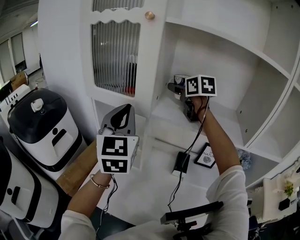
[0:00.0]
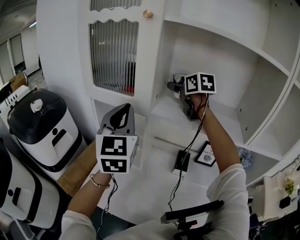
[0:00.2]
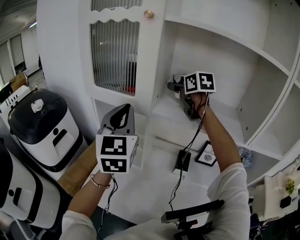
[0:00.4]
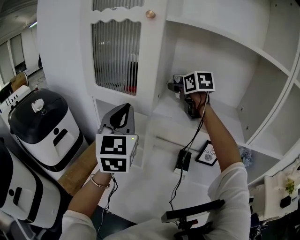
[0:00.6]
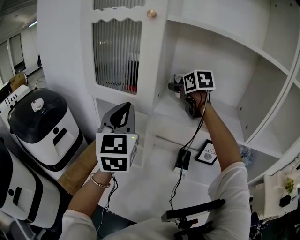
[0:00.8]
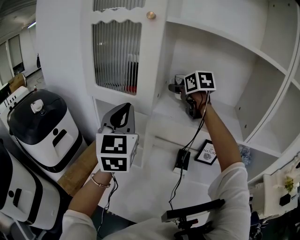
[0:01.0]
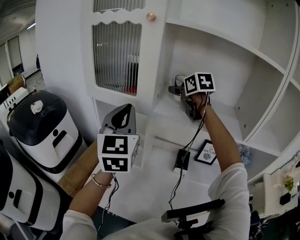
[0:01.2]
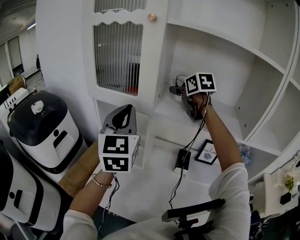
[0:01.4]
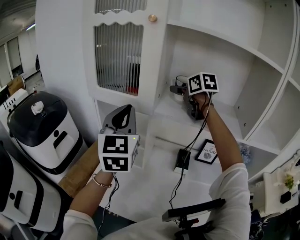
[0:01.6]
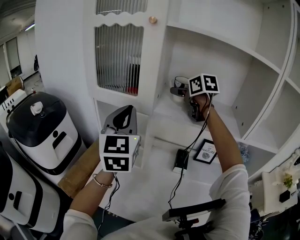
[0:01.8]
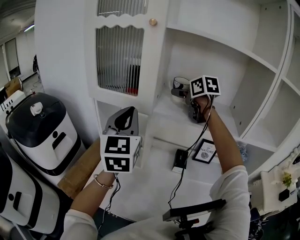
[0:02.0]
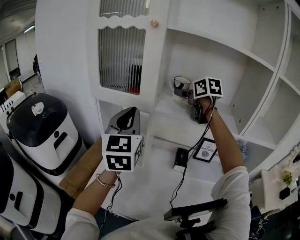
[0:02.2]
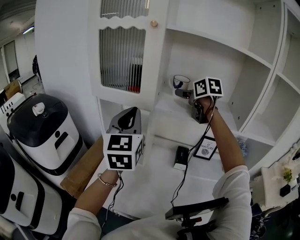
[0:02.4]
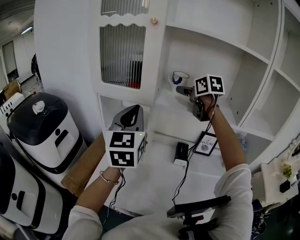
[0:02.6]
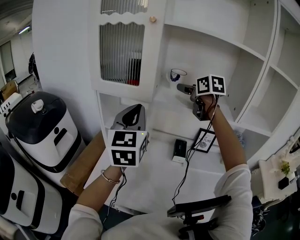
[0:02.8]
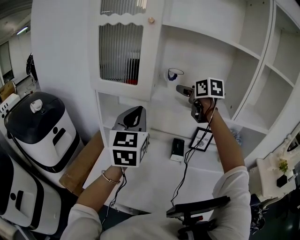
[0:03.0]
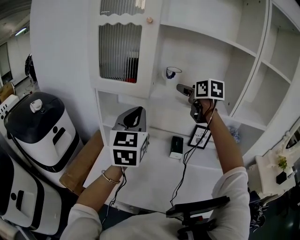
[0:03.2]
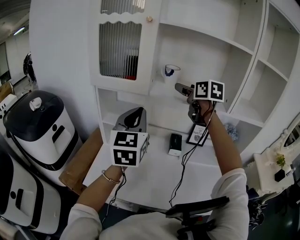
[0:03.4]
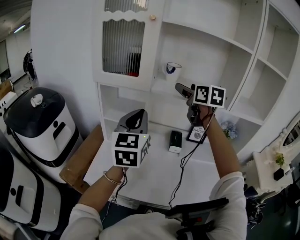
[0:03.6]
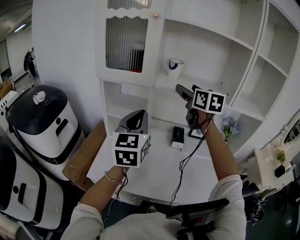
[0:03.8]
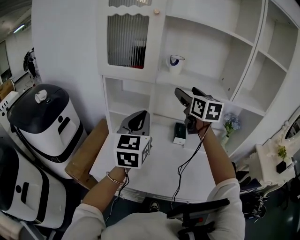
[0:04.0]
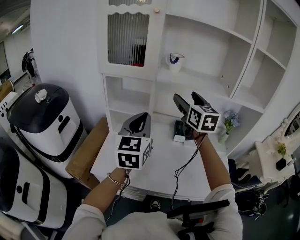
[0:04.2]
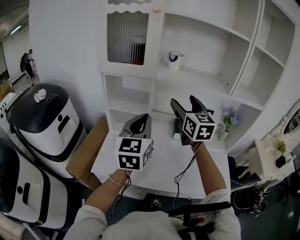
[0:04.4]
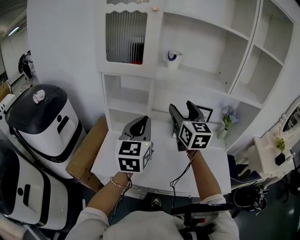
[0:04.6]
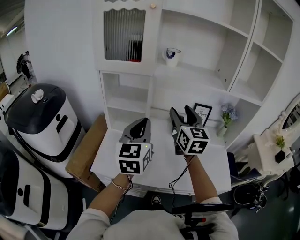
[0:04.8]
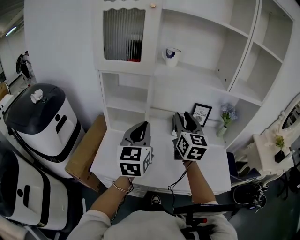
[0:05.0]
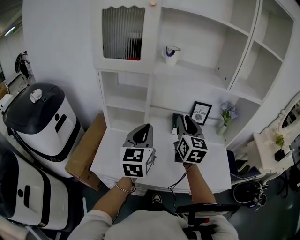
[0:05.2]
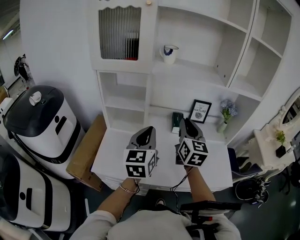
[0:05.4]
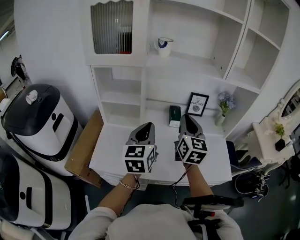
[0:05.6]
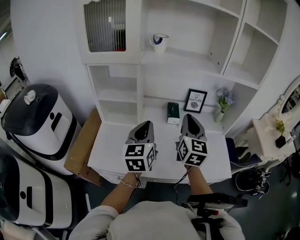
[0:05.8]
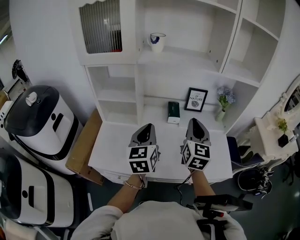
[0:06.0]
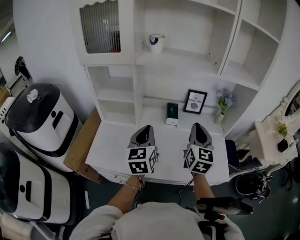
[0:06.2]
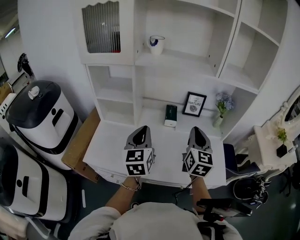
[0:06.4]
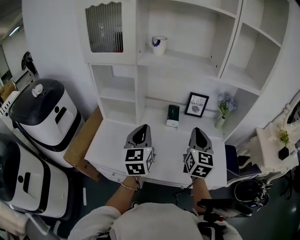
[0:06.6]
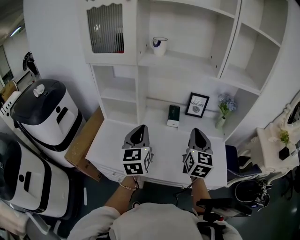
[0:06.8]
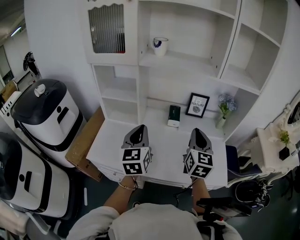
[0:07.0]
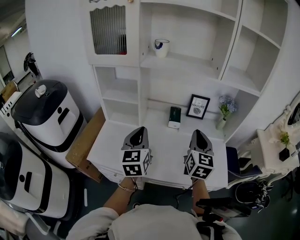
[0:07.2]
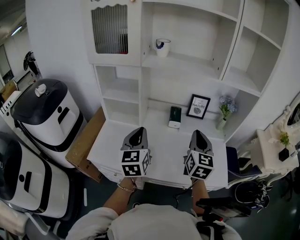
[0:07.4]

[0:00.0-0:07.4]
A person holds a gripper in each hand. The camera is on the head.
0:00.0 to 0:01.4: The grippers move only a little.
0:01.4 to 0:03.0: The right gripper shifts about 10 cm backward. Meanwhile the left gripper moves backward, about 5 cm.
0:03.0 to 0:04.4: The left gripper travels backward and downward by roughly 10 cm. The right gripper goes about 20 cm backward, and turns by approximately 20 degrees.
0:04.4 to 0:06.0: The right gripper moves to the right, downward and backward, some 20 cm, rotates roughly 20 degrees, and closes up; the left gripper travels downward and to the right by approximately 15 cm.
0:06.0 to 0:07.4: There are only small adjustments of the grippers.

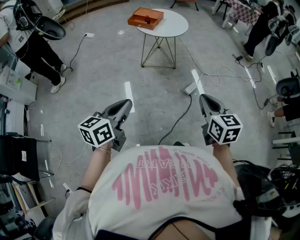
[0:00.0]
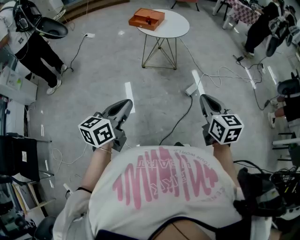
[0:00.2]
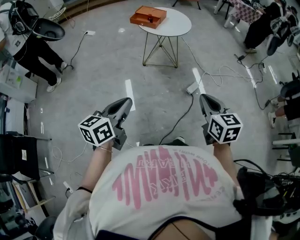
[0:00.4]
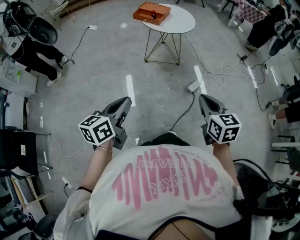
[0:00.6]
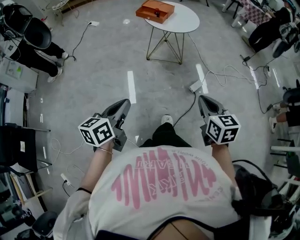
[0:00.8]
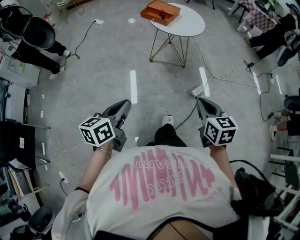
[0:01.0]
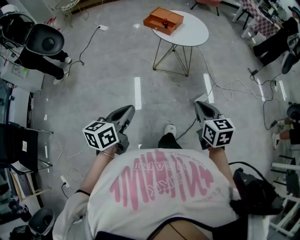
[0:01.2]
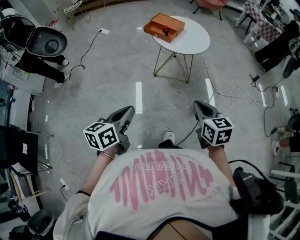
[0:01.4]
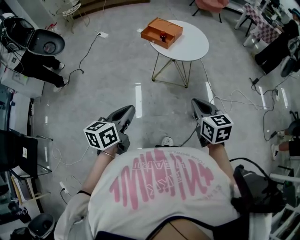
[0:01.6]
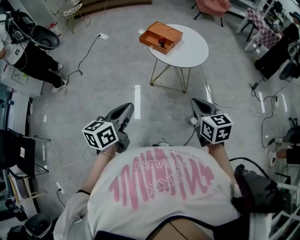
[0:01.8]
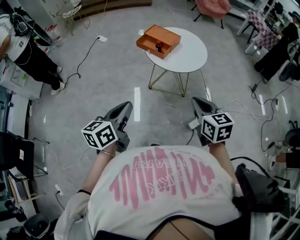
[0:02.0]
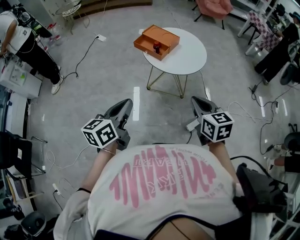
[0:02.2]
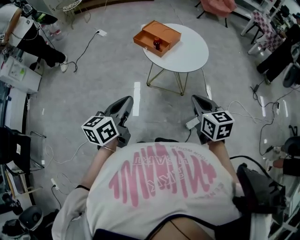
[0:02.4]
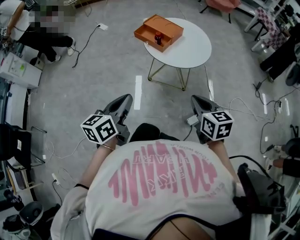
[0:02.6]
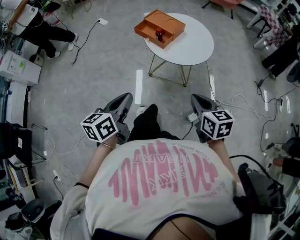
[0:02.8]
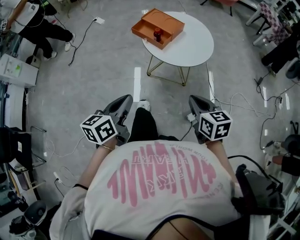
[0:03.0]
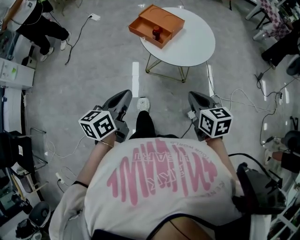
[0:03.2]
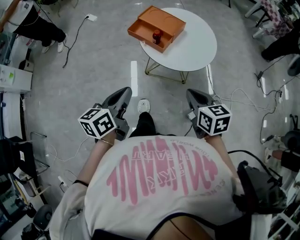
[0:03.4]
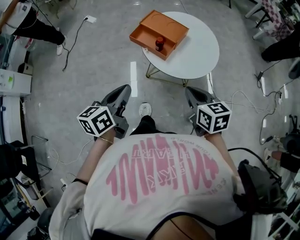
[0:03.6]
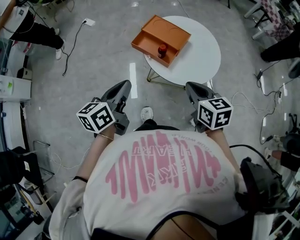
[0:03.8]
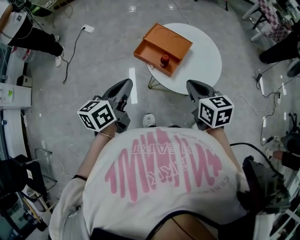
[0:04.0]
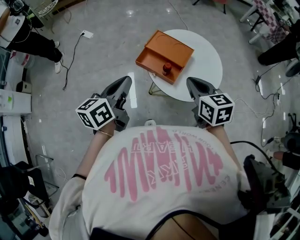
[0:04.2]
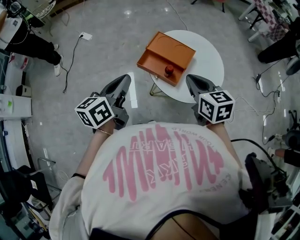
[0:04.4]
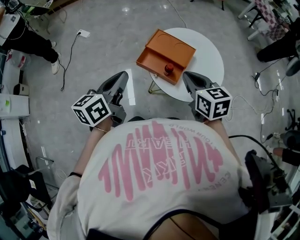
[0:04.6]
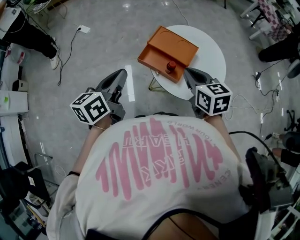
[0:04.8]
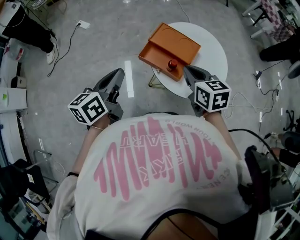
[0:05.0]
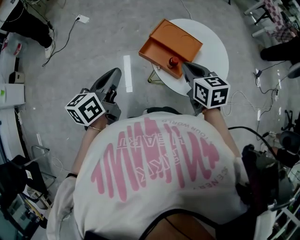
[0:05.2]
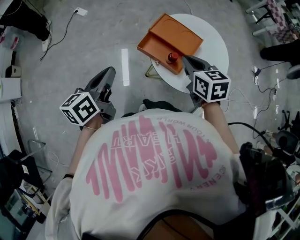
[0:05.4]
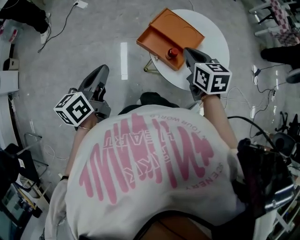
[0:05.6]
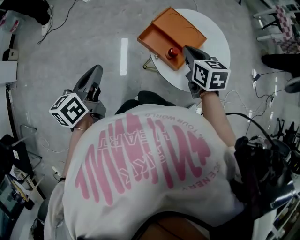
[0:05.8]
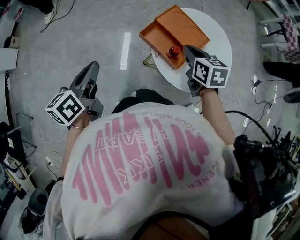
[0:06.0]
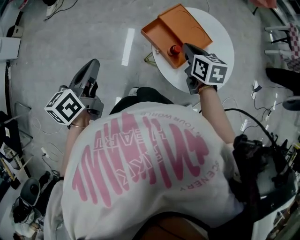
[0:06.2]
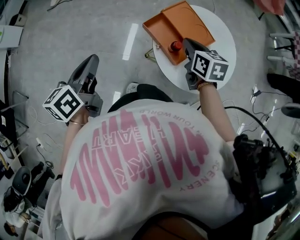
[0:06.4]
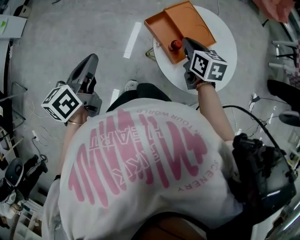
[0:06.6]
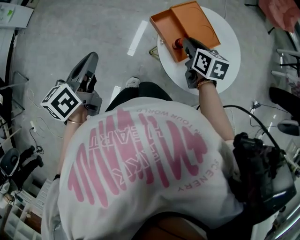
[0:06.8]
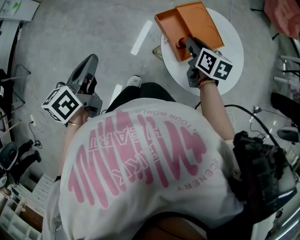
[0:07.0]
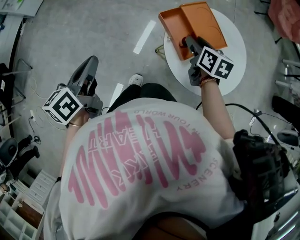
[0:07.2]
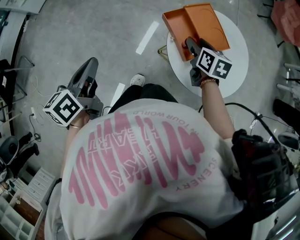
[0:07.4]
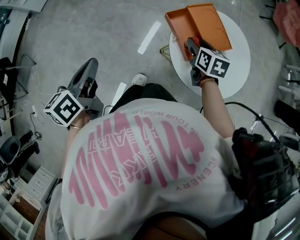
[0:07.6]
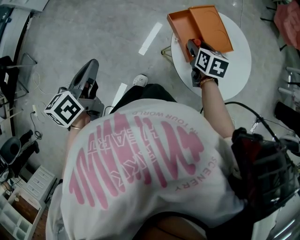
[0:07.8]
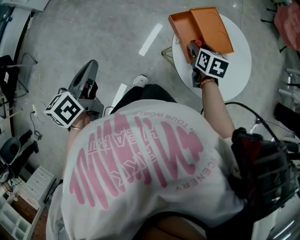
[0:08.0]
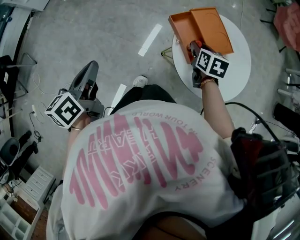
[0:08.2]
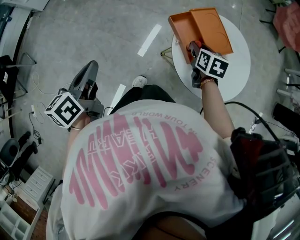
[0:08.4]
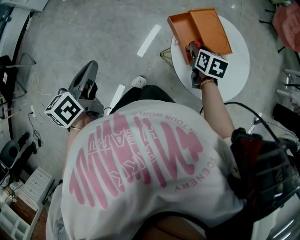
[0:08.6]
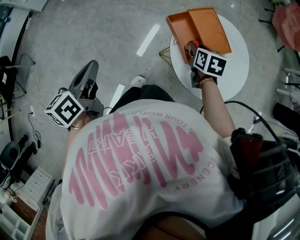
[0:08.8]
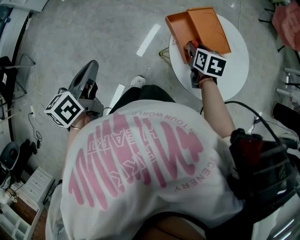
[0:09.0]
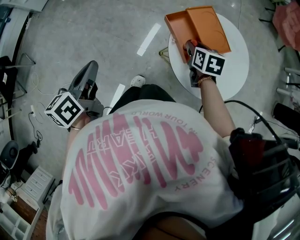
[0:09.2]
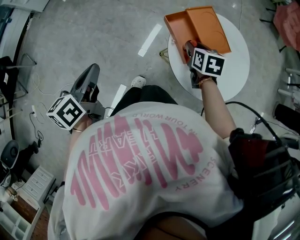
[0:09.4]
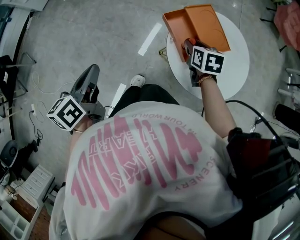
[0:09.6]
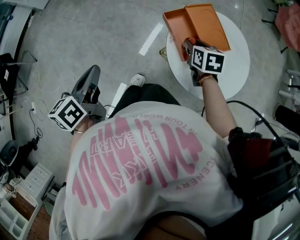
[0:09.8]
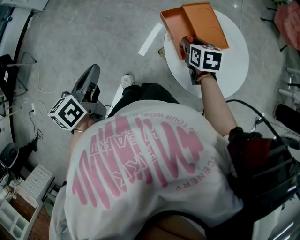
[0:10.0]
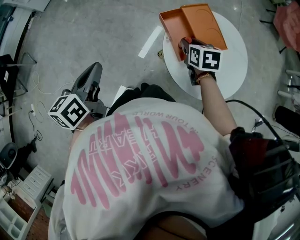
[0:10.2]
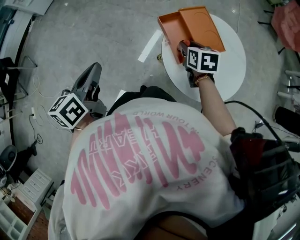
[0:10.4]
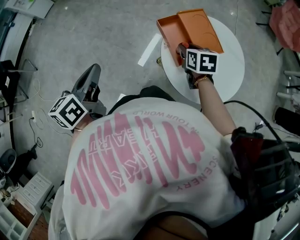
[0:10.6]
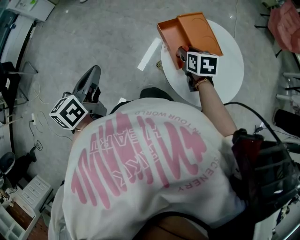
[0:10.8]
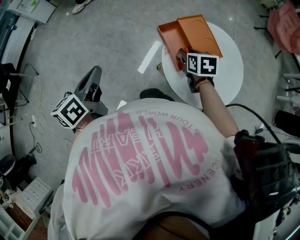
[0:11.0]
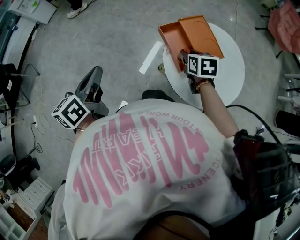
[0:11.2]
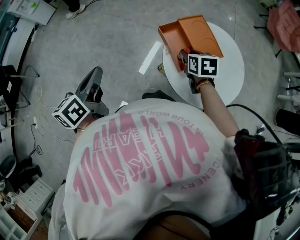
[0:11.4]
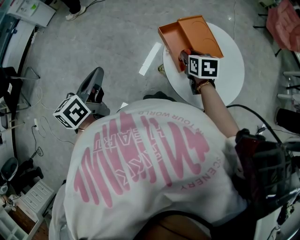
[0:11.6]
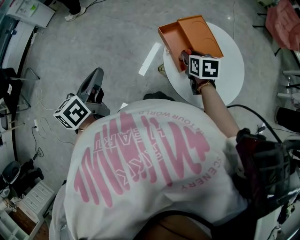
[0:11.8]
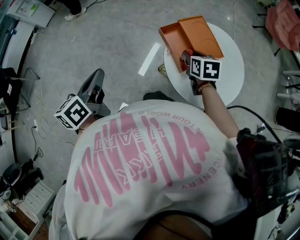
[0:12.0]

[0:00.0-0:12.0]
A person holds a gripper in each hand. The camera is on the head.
0:00.0 to 0:01.6: The two grippers go about 25 cm forward.
0:01.6 to 0:03.0: Both grippers travel together forward, some 20 cm.
0:03.0 to 0:04.4: The right gripper travels forward and to the left by some 35 cm, while the left gripper moves forward, about 35 cm.
0:04.4 to 0:06.0: The right gripper shifts roughly 15 cm forward and downward, while the left gripper travels to the left and downward by approximately 10 cm, and swivels some 20 degrees.
0:06.0 to 0:07.6: The left gripper shifts roughly 15 cm backward, and turns by approximately 20 degrees, while the right gripper ends up approximately 5 cm from where it was, and opens its fingers.
0:07.6 to 0:09.0: The grippers stay close to where they were, moving slightly.
0:09.0 to 0:10.4: The left gripper changes place by about 5 cm.
0:10.4 to 0:12.0: There are only small adjustments of the grippers.

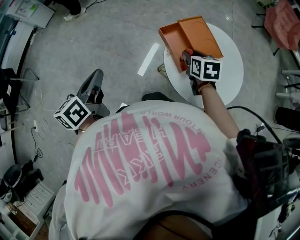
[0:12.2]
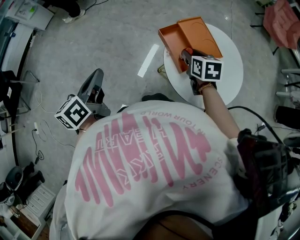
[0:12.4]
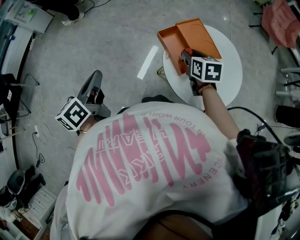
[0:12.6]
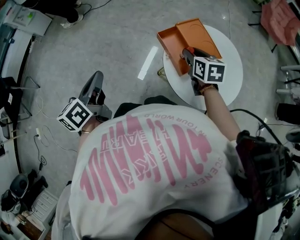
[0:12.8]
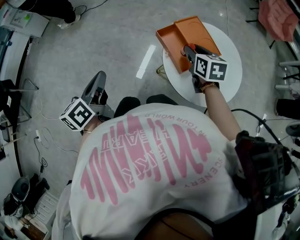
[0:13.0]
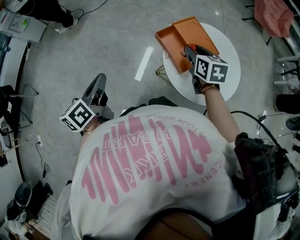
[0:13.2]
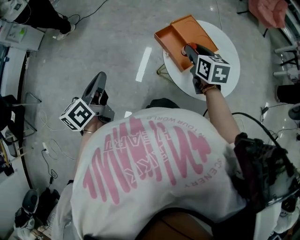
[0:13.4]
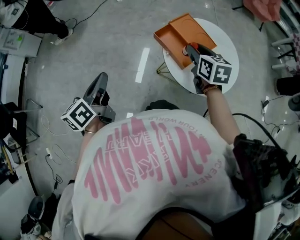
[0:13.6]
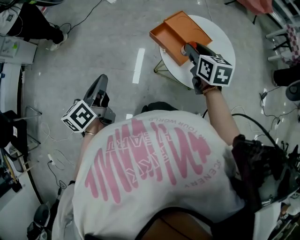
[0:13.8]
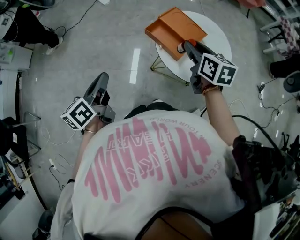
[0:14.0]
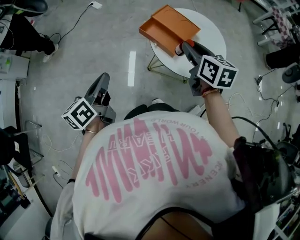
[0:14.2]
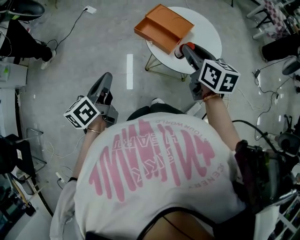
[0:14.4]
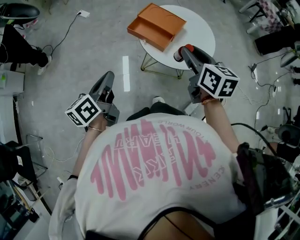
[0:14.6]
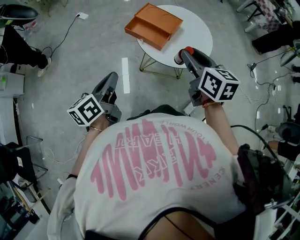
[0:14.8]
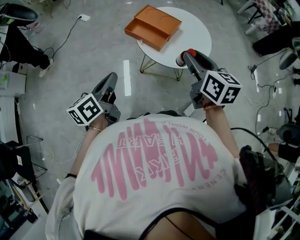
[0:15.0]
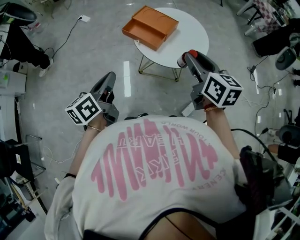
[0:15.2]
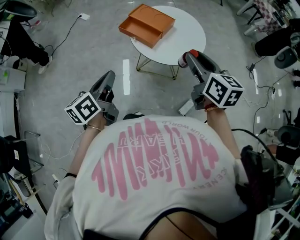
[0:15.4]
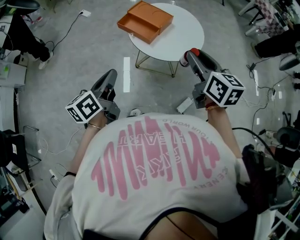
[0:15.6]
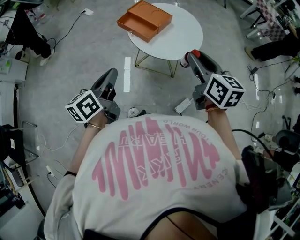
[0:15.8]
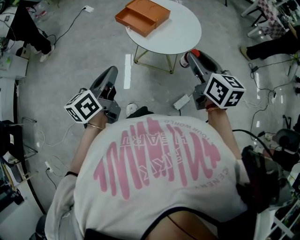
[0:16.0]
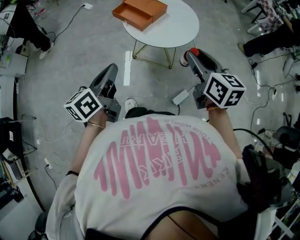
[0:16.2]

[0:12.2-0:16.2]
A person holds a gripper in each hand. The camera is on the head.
0:12.2 to 0:13.6: The left gripper changes place by some 5 cm, while the right gripper is displaced upward by some 10 cm.
0:13.6 to 0:14.8: The right gripper shifts roughly 20 cm backward and upward; the left gripper heads to the right and backward, covering some 10 cm, and changes its angle by some 20 degrees.
0:14.8 to 0:16.2: Both grippers travel together to the right and backward, some 20 cm.
